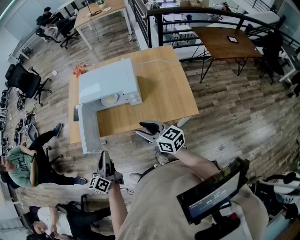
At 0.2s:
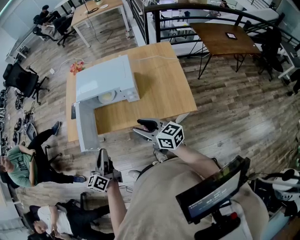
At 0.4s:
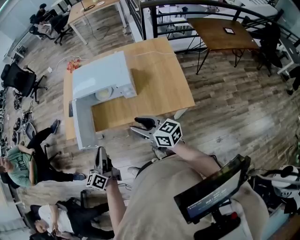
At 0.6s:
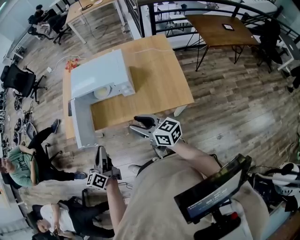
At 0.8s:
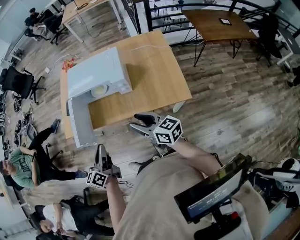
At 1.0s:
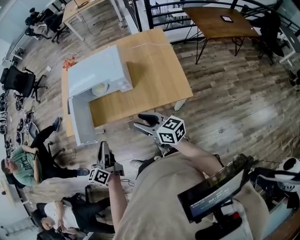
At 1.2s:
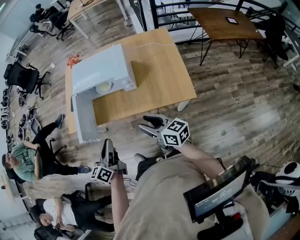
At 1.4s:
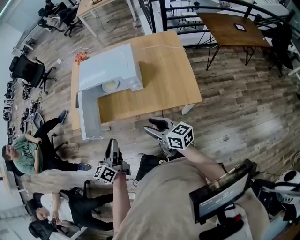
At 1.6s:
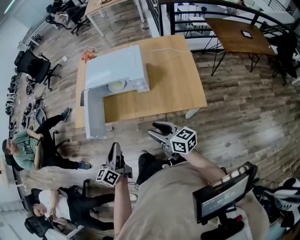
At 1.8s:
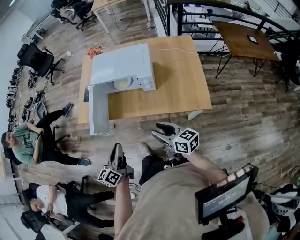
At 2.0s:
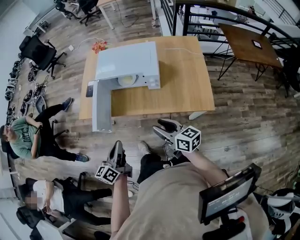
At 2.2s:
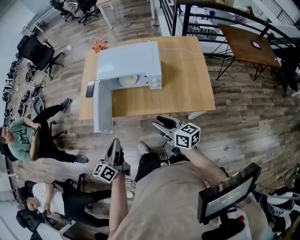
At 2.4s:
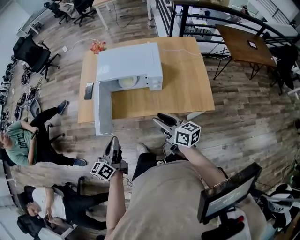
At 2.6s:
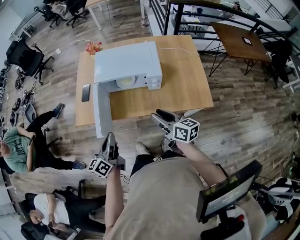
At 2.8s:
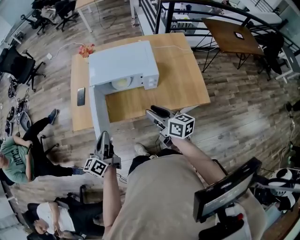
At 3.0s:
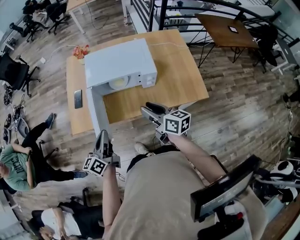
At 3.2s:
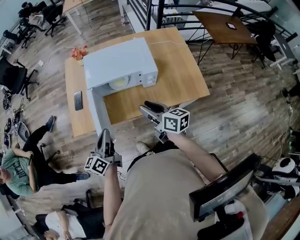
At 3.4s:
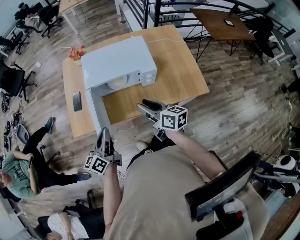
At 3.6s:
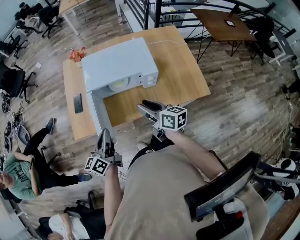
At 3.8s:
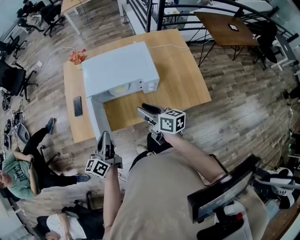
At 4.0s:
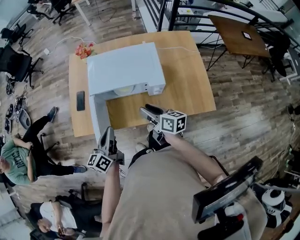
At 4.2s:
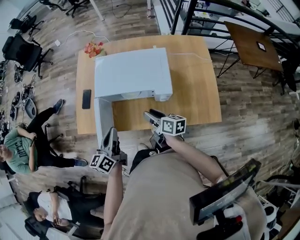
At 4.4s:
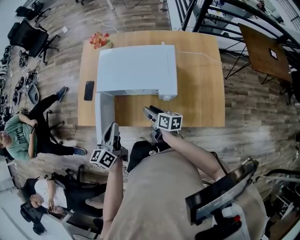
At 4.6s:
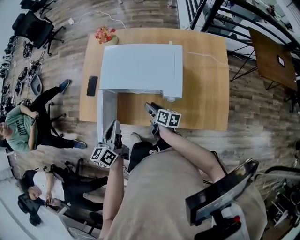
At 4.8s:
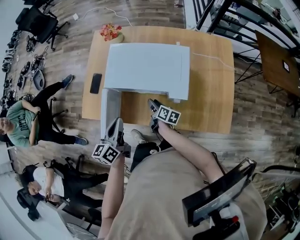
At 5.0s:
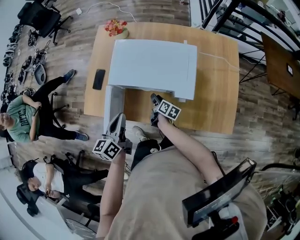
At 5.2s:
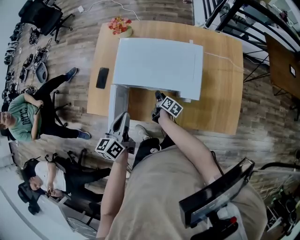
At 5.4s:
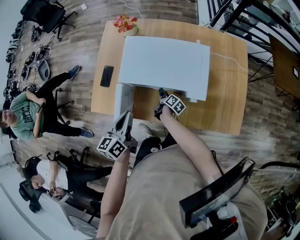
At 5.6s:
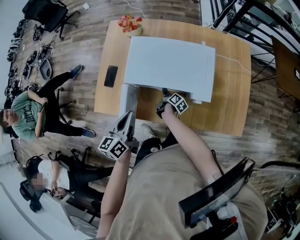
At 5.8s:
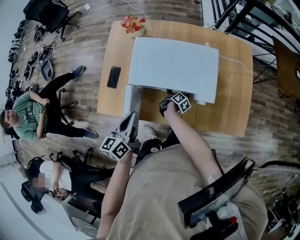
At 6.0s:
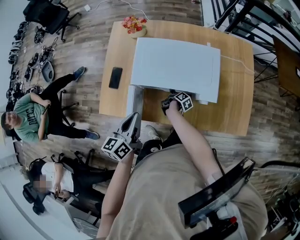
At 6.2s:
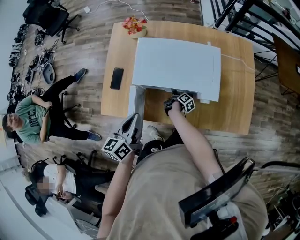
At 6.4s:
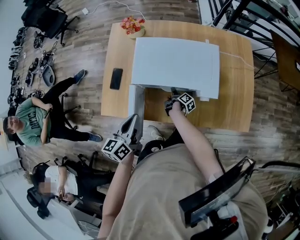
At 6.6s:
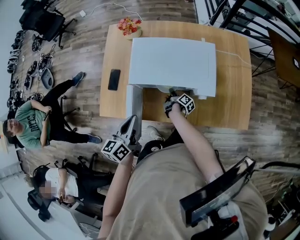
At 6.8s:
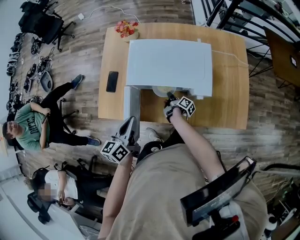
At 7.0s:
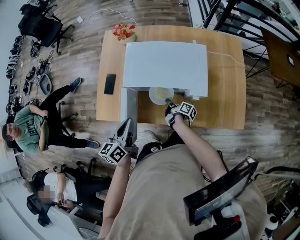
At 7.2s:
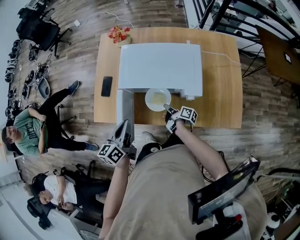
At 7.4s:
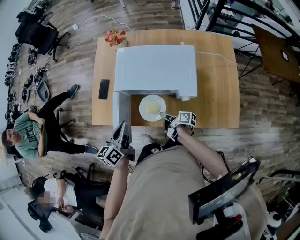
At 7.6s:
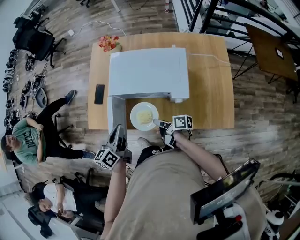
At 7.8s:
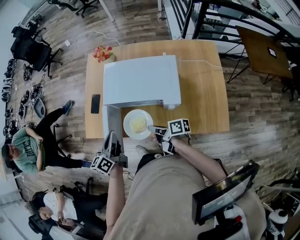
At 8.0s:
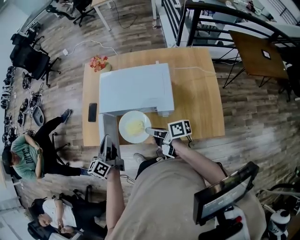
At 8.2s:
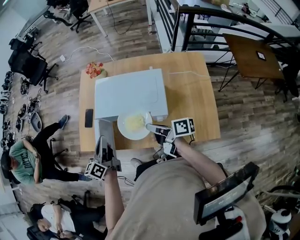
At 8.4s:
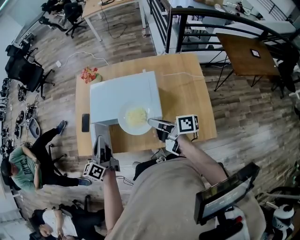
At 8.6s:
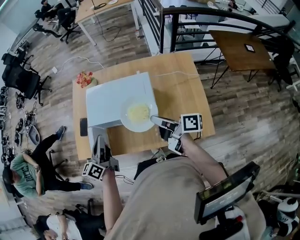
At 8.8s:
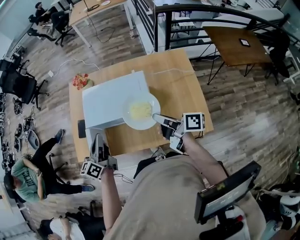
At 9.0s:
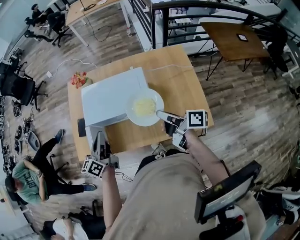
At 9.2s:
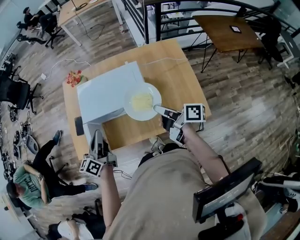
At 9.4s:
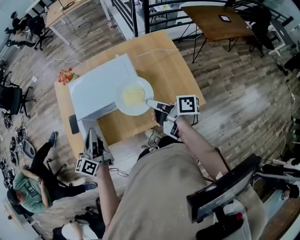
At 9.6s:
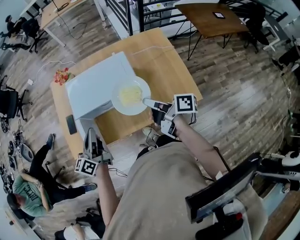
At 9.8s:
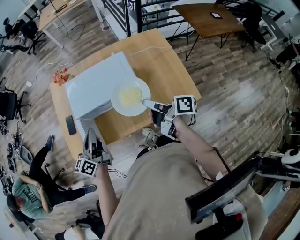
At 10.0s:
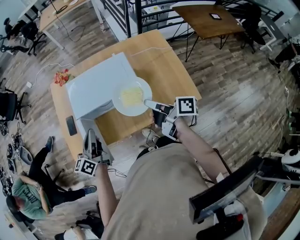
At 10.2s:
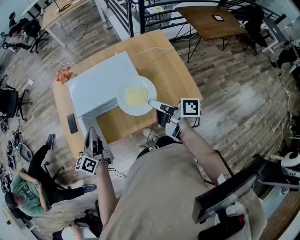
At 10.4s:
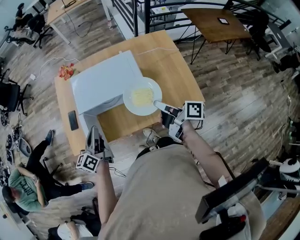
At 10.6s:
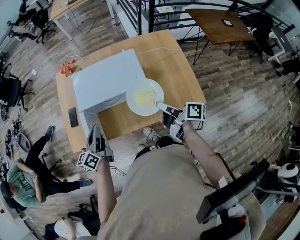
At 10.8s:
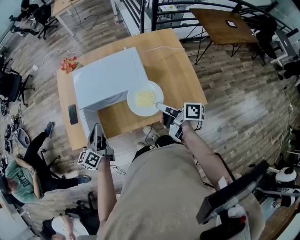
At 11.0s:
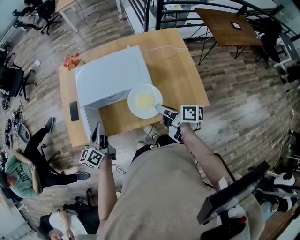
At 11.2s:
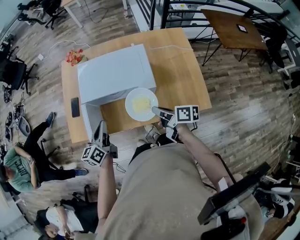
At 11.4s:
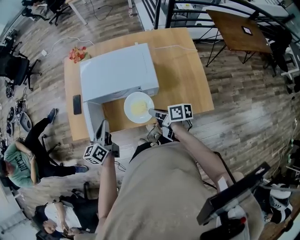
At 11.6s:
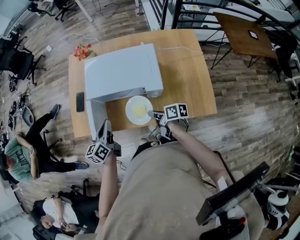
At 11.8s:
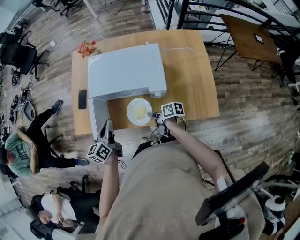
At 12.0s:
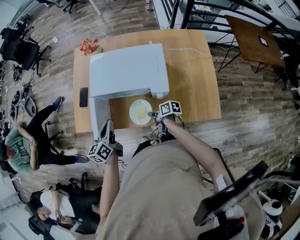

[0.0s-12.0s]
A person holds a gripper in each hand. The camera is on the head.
0.0s to 1.6s: The right gripper is displaced backward by about 5 cm. Meanwhile the left gripper moves some 5 cm.
1.6s to 3.0s: The two grippers go some 20 cm forward and to the left.
3.0s to 4.4s: The right gripper goes some 20 cm downward and forward, and swivels roughly 20 degrees. The left gripper is displaced forward and to the right by some 15 cm.
4.4s to 6.0s: The left gripper goes roughly 10 cm to the left and forward. The right gripper is displaced downward and forward by roughly 25 cm, and rotates around the line of its fingers by roughly 40 degrees, clockwise from behind.
6.0s to 7.6s: The right gripper is displaced upward and backward by some 25 cm, swivels some 50 degrees, and closes.
7.6s to 9.0s: The right gripper is displaced upward and to the right by some 30 cm, and turns by approximately 20 degrees. Meanwhile the left gripper goes some 10 cm to the right and upward.
9.0s to 10.4s: The left gripper is displaced to the left by roughly 5 cm; the right gripper goes some 5 cm backward.
10.4s to 12.0s: The left gripper shifts approximately 10 cm downward; the right gripper travels downward by approximately 30 cm, and rotates about 40 degrees.

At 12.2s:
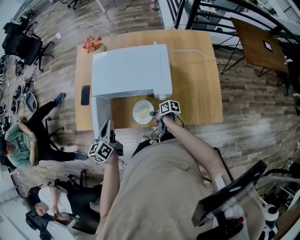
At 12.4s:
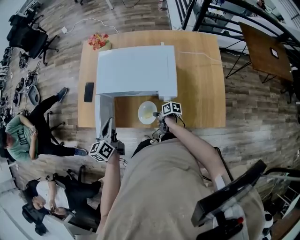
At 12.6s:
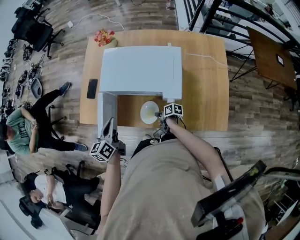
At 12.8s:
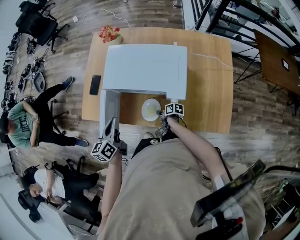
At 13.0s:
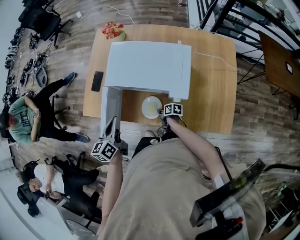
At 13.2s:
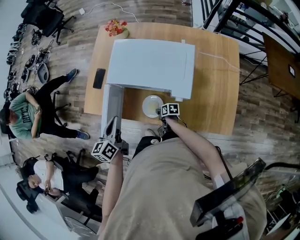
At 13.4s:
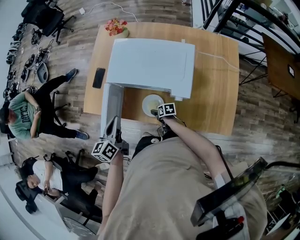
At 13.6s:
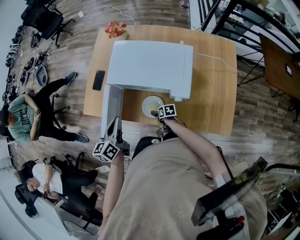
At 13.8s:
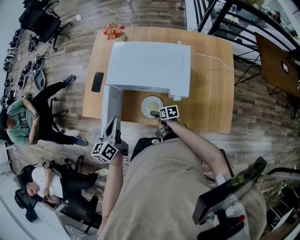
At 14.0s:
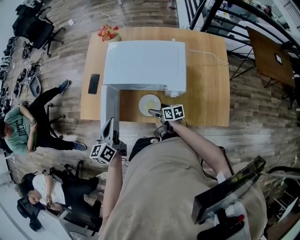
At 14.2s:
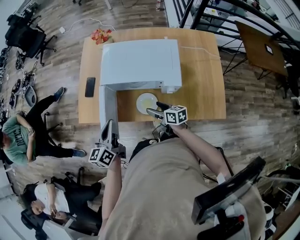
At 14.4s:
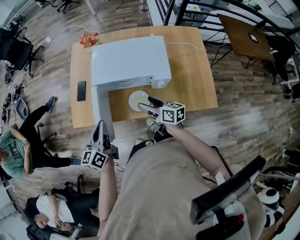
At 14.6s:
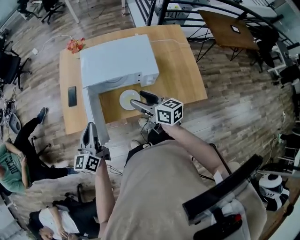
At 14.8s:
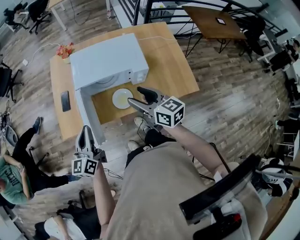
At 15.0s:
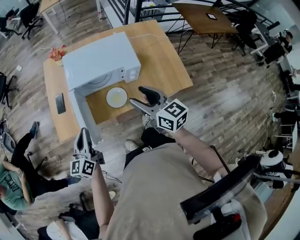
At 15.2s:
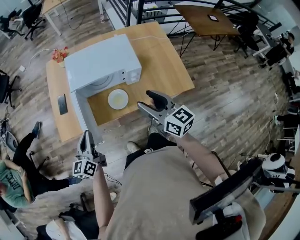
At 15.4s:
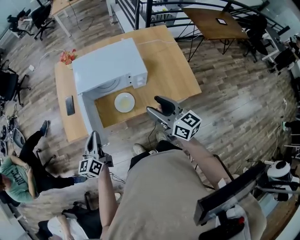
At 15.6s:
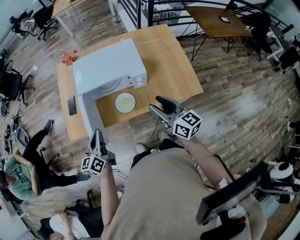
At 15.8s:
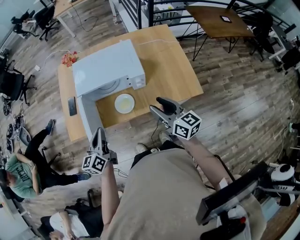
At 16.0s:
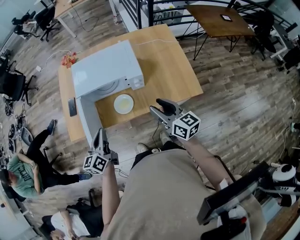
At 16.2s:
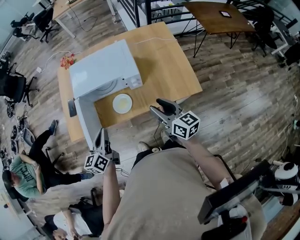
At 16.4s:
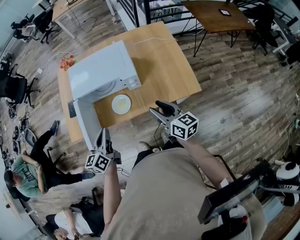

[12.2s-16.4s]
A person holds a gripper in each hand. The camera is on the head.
12.2s to 13.6s: The right gripper moves downward, about 10 cm, turns by about 30 degrees, and opens its fingers.
13.6s to 15.0s: The left gripper changes place by roughly 15 cm, and changes its angle by roughly 30 degrees; the right gripper goes some 50 cm upward, tilts its fingers about 40 degrees upward, and closes up.
15.0s to 16.4s: The left gripper heads to the right, covering some 15 cm; the right gripper is displaced to the right and downward by approximately 15 cm.

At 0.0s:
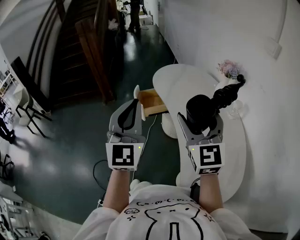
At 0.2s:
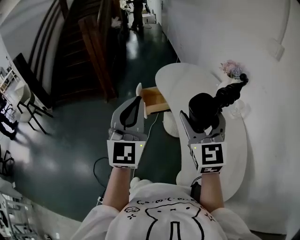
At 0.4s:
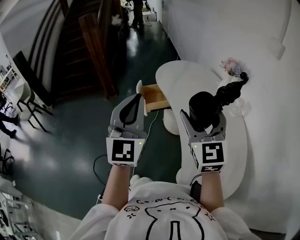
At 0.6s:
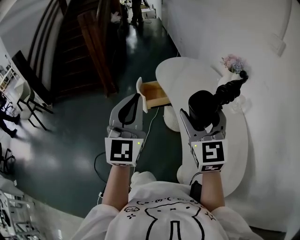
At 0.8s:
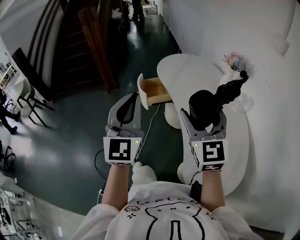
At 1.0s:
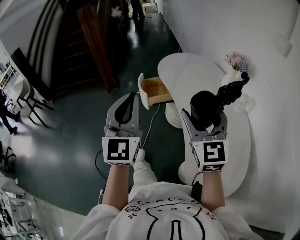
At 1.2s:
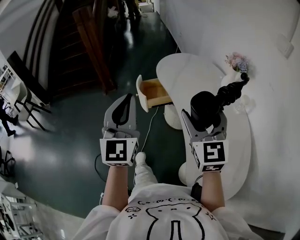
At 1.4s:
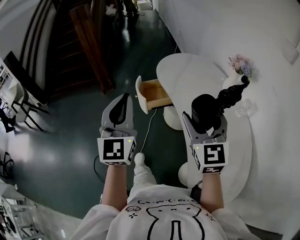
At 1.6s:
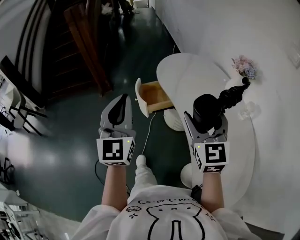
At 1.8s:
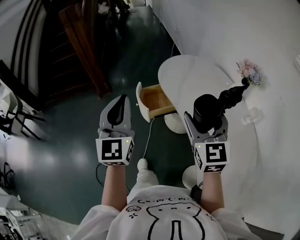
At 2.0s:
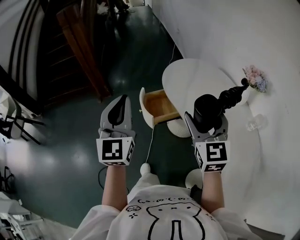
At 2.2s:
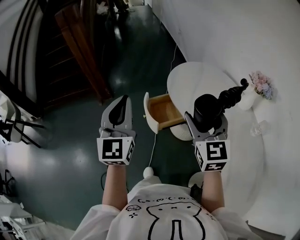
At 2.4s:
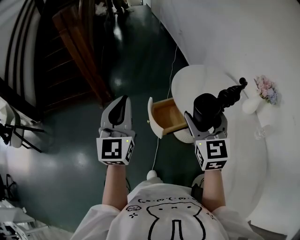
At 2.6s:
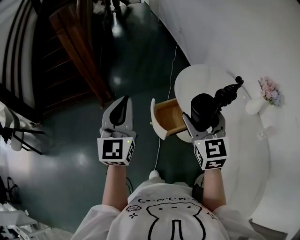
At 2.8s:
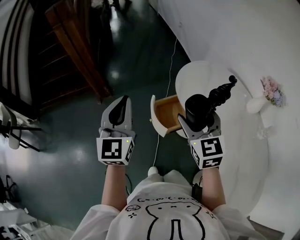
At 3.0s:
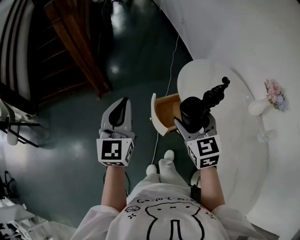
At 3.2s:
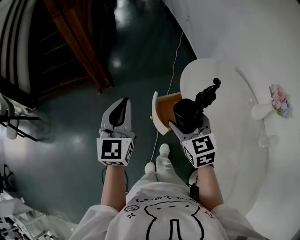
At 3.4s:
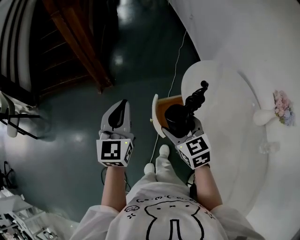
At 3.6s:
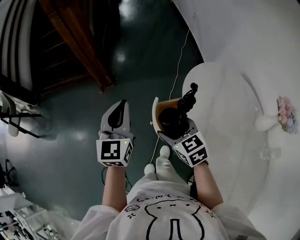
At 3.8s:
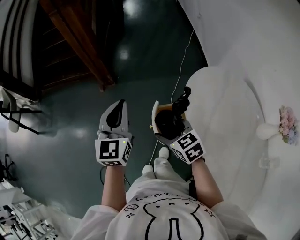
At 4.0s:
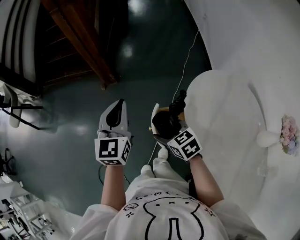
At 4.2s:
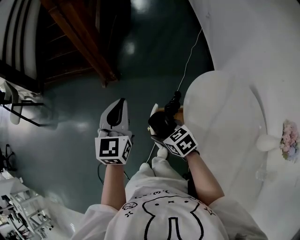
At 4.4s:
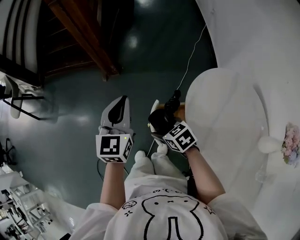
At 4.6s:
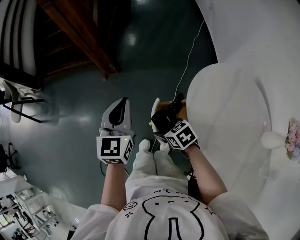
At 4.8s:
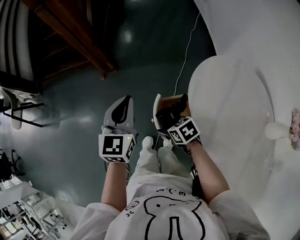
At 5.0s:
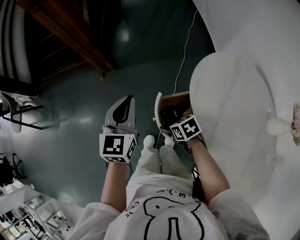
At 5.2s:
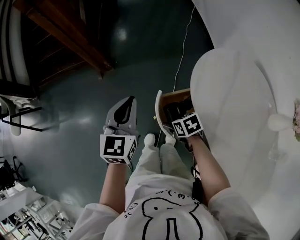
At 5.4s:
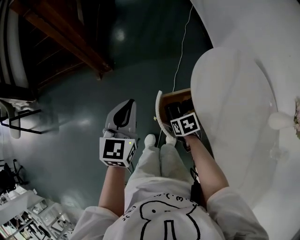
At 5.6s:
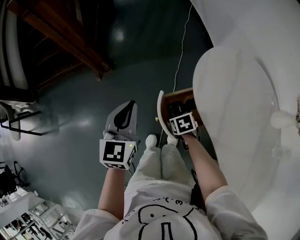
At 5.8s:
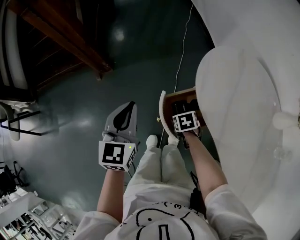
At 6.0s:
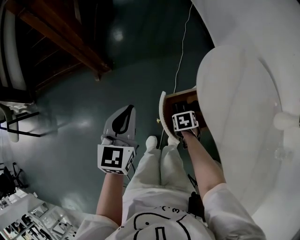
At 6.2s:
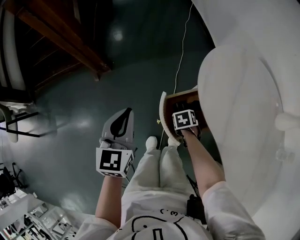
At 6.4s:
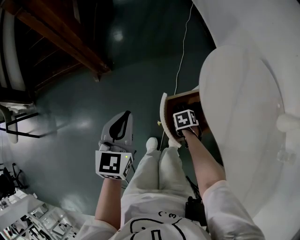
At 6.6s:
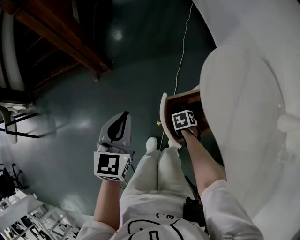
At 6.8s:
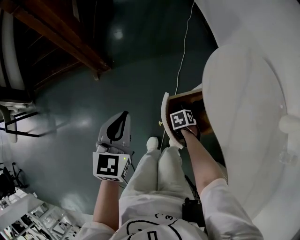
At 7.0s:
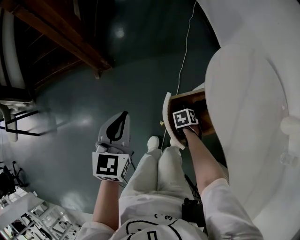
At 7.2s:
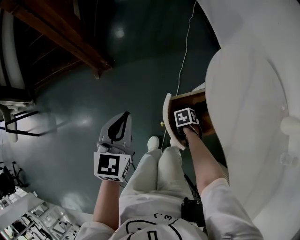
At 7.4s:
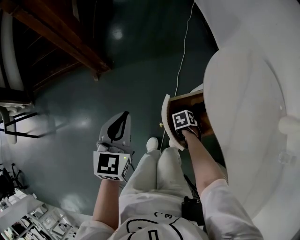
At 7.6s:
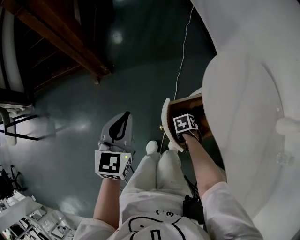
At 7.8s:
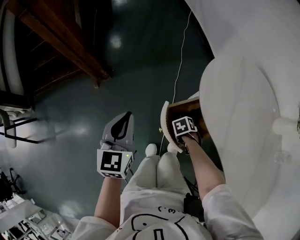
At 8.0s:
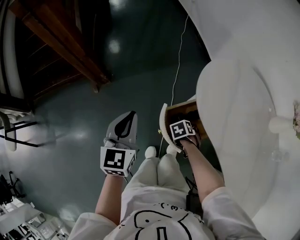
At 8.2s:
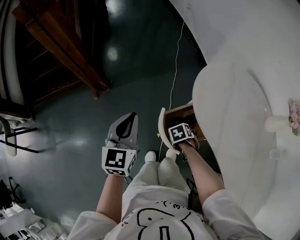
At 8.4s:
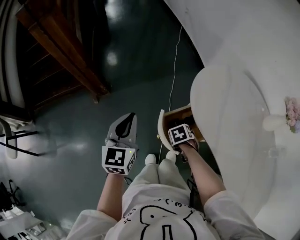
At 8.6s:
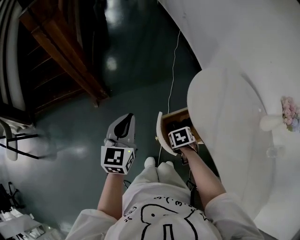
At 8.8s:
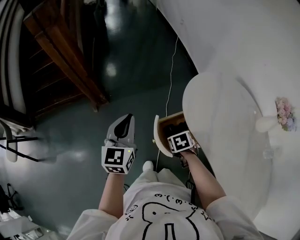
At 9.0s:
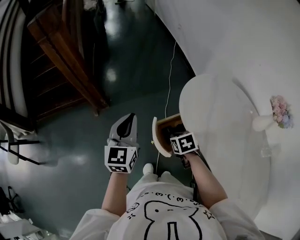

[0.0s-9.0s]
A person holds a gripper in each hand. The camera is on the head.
0.0s to 1.6s: The right gripper moves forward and downward, about 15 cm. The left gripper goes about 15 cm forward and to the left.
1.6s to 3.0s: The two grippers go some 35 cm forward and to the left.
3.0s to 4.4s: The right gripper moves downward, roughly 25 cm, and changes its angle by some 50 degrees; the left gripper changes place by approximately 15 cm.
4.4s to 6.0s: The left gripper heads downward, covering some 10 cm. Meanwhile the right gripper moves downward, about 15 cm, and swivels approximately 50 degrees.
6.0s to 7.6s: The right gripper is displaced downward by approximately 5 cm.
7.6s to 9.0s: The left gripper is displaced upward by about 15 cm; the right gripper shifts about 25 cm upward, swivels approximately 30 degrees, and closes.
